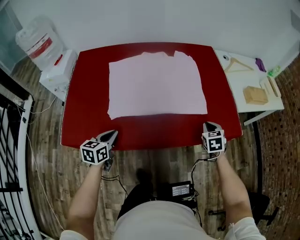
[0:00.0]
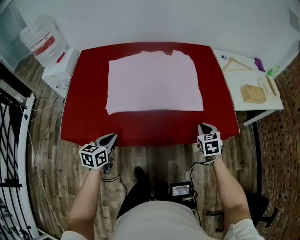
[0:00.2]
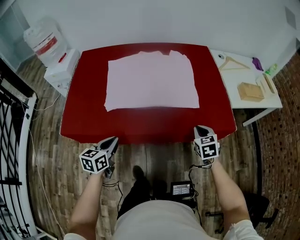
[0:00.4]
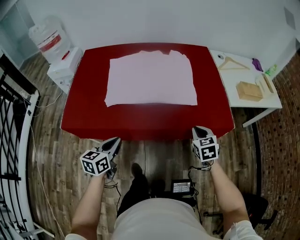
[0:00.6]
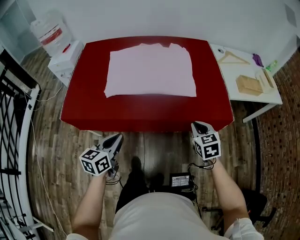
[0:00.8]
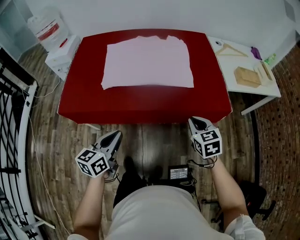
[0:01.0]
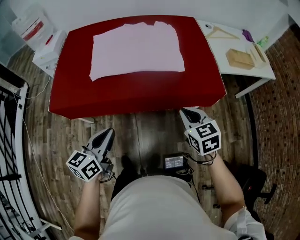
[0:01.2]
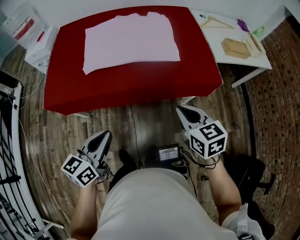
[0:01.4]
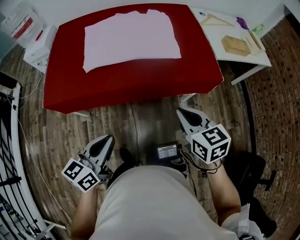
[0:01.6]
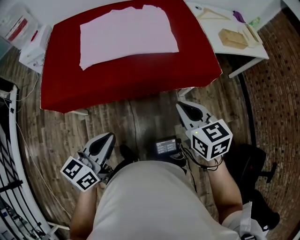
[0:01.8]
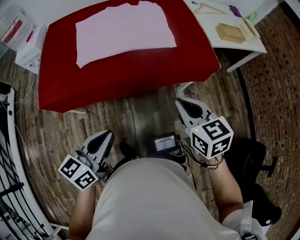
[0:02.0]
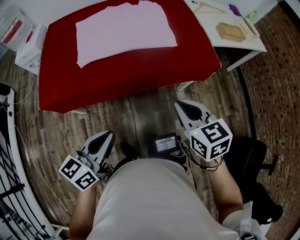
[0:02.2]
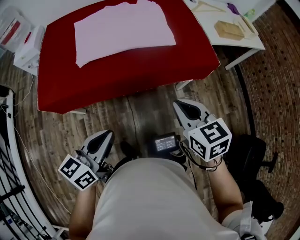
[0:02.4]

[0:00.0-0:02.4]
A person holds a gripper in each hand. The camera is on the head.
0.0 to 1.2 s: The left gripper shifts approximately 25 cm backward, to the right and upward, while the right gripper shifts about 20 cm backward and upward, and rotates some 20 degrees.
1.2 to 2.4 s: The right gripper moves backward and upward, about 10 cm. The left gripper moves backward, roughly 5 cm.

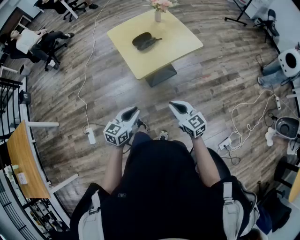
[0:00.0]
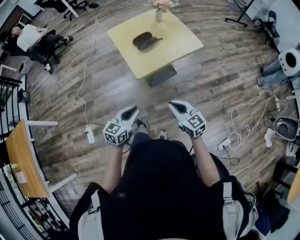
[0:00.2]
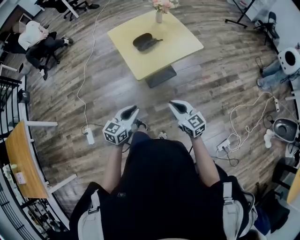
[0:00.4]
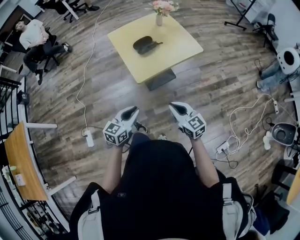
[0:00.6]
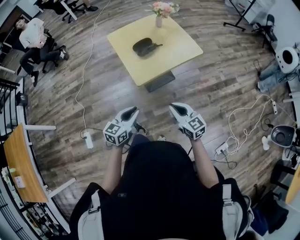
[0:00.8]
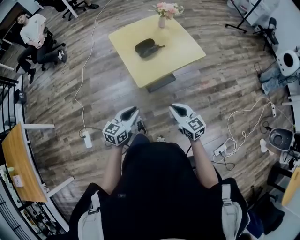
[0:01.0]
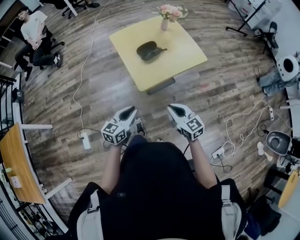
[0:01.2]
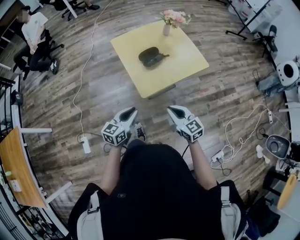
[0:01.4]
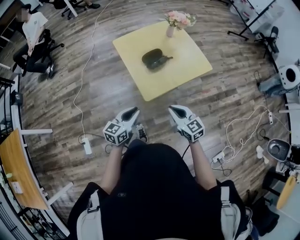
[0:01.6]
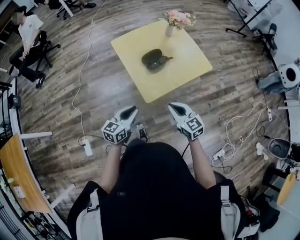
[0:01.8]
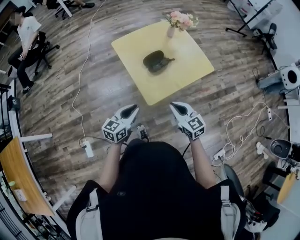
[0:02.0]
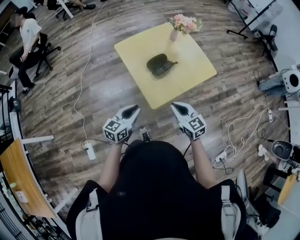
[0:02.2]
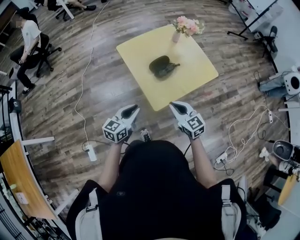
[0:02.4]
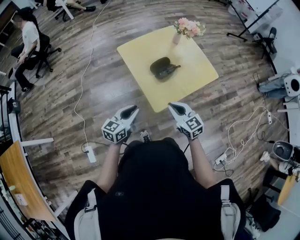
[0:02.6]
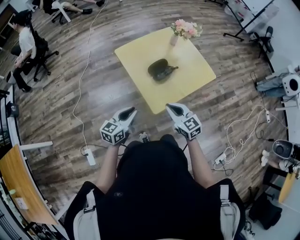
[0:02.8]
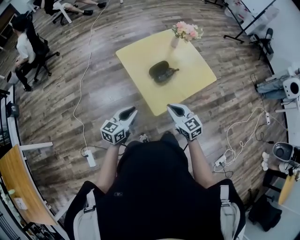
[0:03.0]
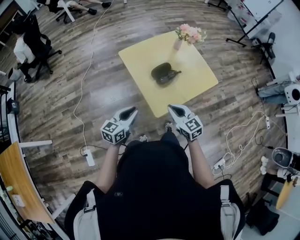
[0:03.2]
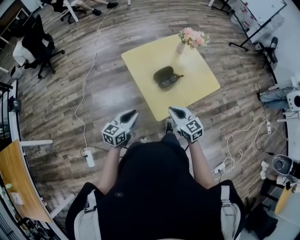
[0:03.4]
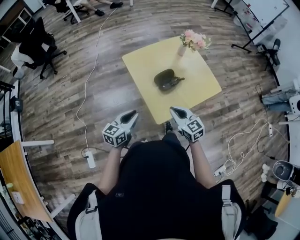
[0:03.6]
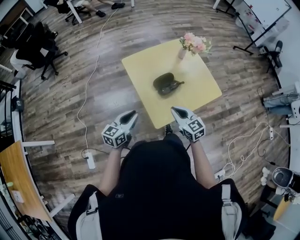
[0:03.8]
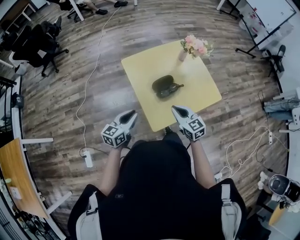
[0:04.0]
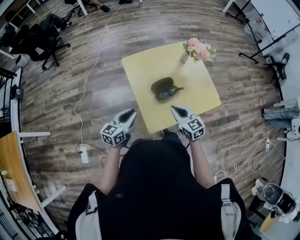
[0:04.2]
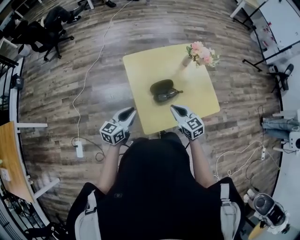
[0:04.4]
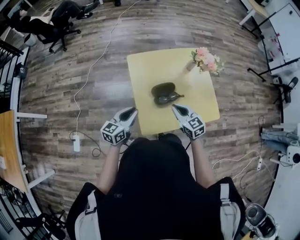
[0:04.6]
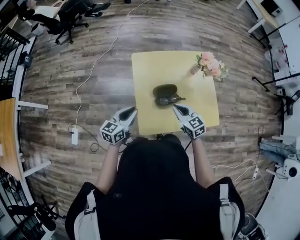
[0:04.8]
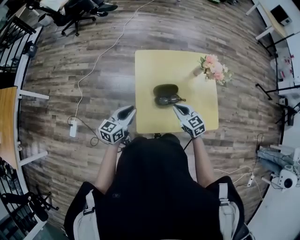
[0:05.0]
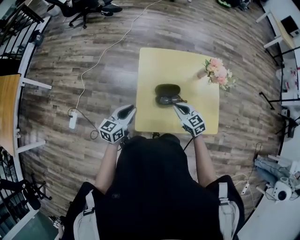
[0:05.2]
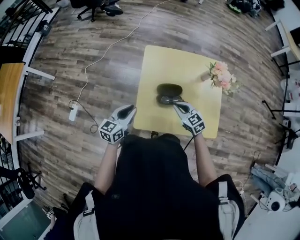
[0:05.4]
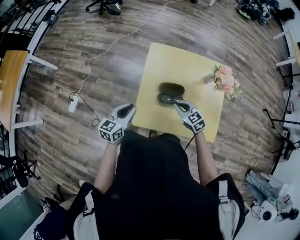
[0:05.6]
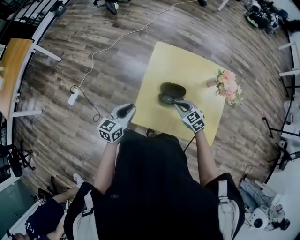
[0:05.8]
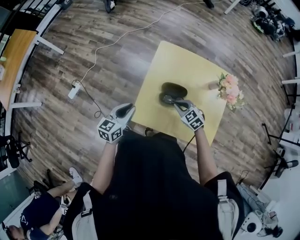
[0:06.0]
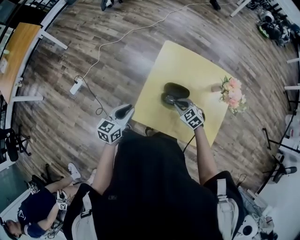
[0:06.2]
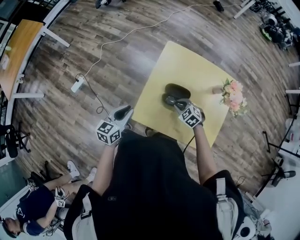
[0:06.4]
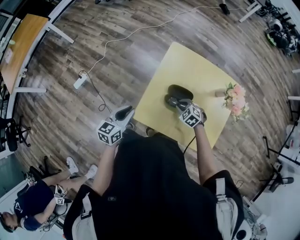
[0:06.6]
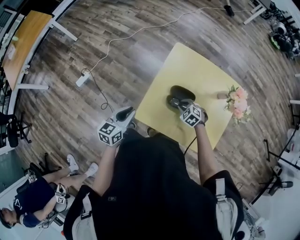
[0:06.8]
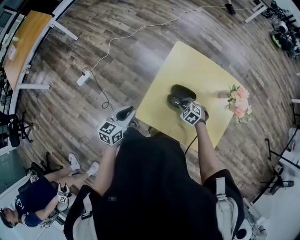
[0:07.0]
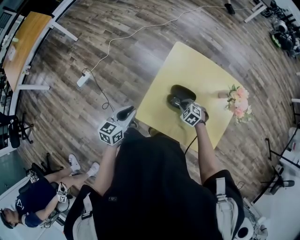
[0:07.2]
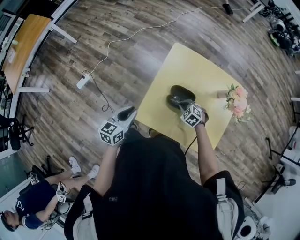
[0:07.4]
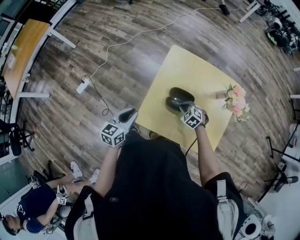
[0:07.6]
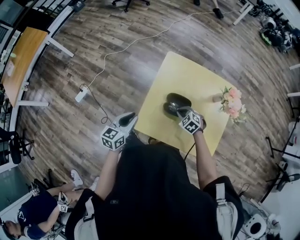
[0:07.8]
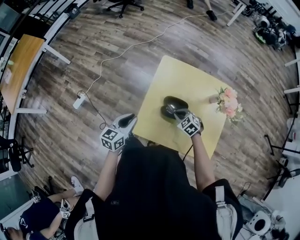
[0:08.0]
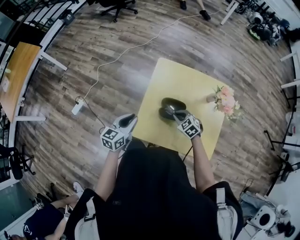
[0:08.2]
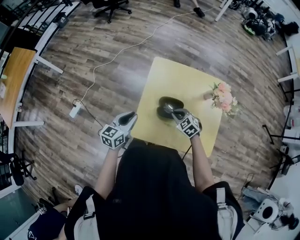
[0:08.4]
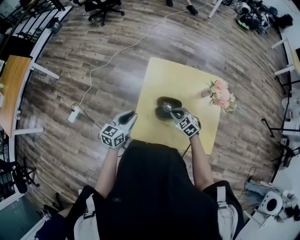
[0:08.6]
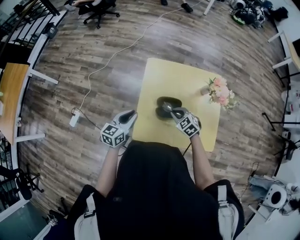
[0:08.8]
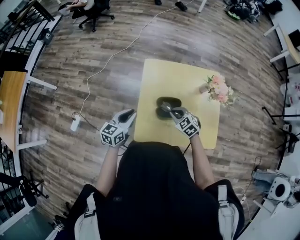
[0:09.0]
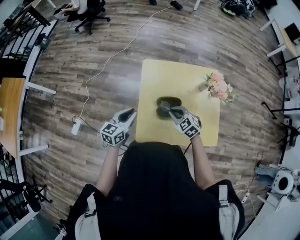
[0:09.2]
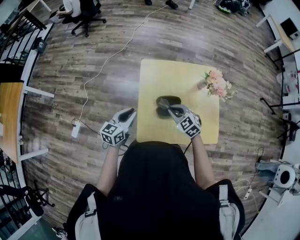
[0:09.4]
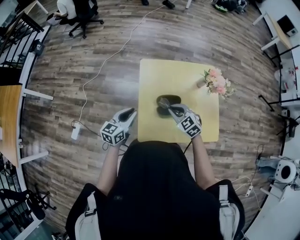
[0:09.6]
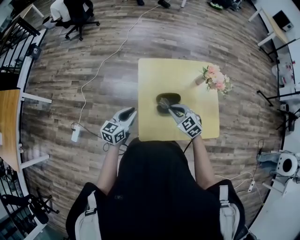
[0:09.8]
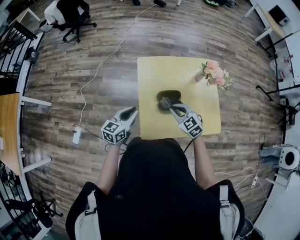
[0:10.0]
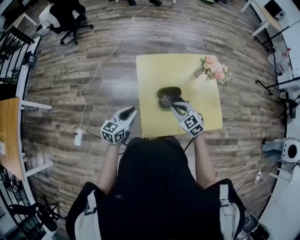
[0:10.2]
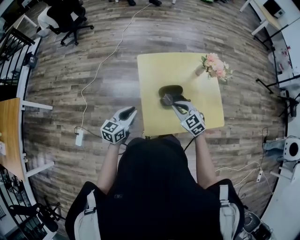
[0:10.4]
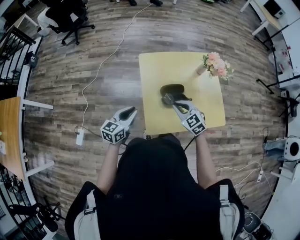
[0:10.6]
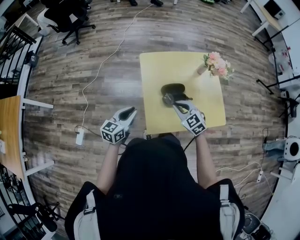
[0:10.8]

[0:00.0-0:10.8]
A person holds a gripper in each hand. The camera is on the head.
0.0 to 1.6 s: Both grippers travel together forward and to the left, about 20 cm.
1.6 to 3.0 s: Both grippers travel together forward and to the left, about 15 cm.
3.0 to 4.6 s: Both grippers travel together forward and to the right, about 20 cm. The left gripper swivels some 20 degrees.
4.6 to 6.2 s: The left gripper ends up roughly 5 cm from where it was, and swivels approximately 30 degrees. Meanwhile the right gripper moves downward, some 10 cm, and turns by approximately 50 degrees.
7.8 to 9.2 s: The left gripper heads forward, covering roughly 10 cm, while the right gripper heads upward, covering about 10 cm, and rotates some 20 degrees.
9.2 to 10.8 s: The right gripper heads backward, covering about 5 cm. The left gripper heads backward and to the left, covering some 10 cm.

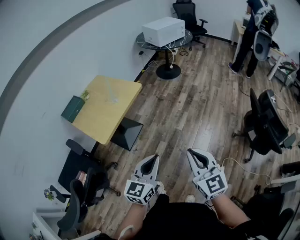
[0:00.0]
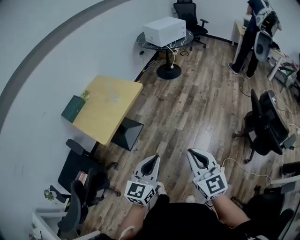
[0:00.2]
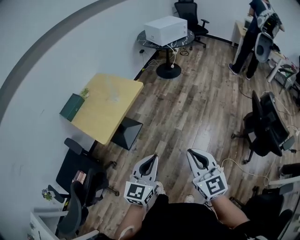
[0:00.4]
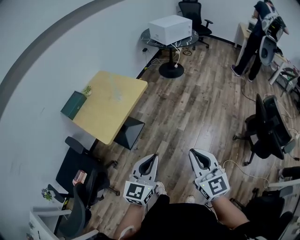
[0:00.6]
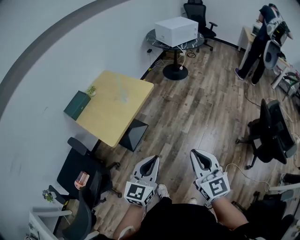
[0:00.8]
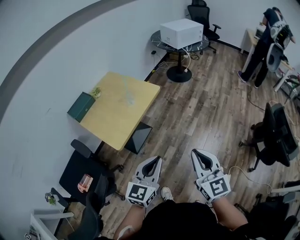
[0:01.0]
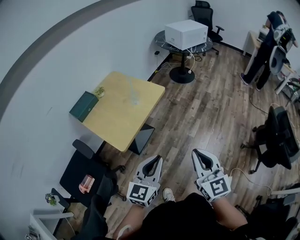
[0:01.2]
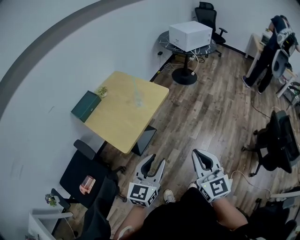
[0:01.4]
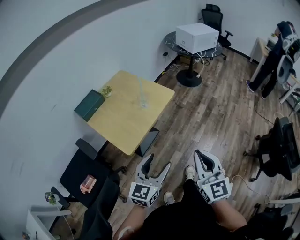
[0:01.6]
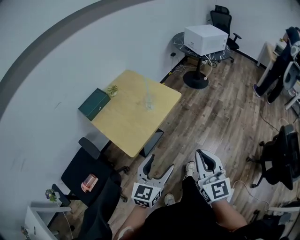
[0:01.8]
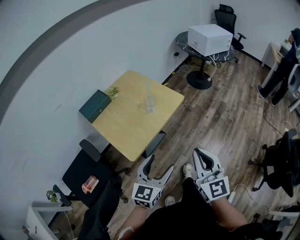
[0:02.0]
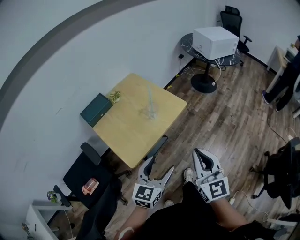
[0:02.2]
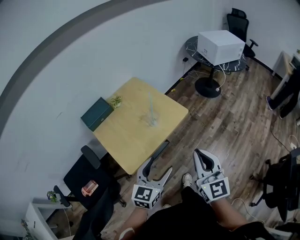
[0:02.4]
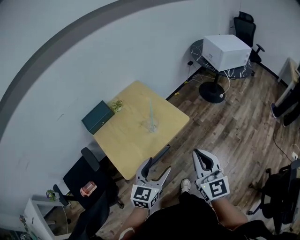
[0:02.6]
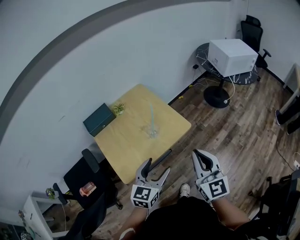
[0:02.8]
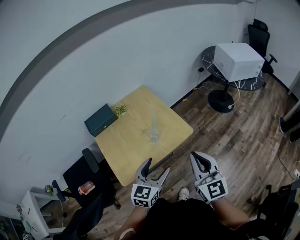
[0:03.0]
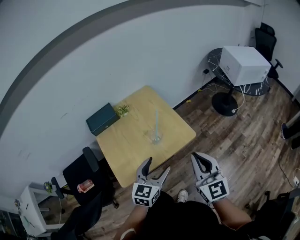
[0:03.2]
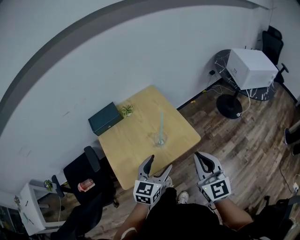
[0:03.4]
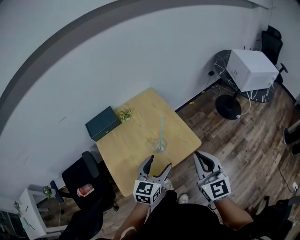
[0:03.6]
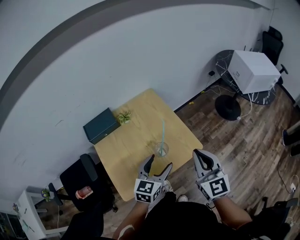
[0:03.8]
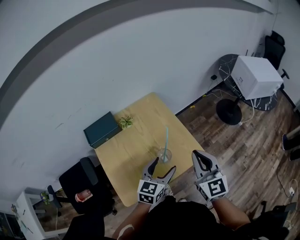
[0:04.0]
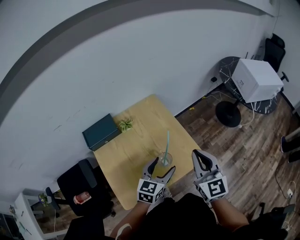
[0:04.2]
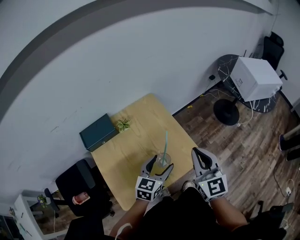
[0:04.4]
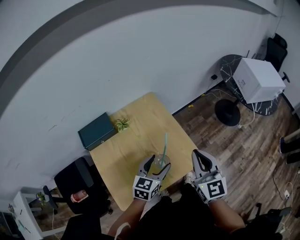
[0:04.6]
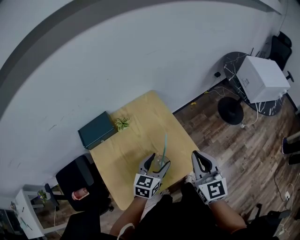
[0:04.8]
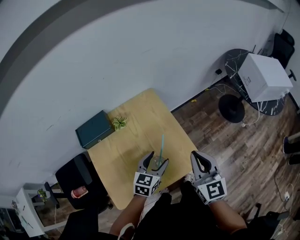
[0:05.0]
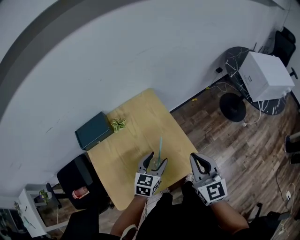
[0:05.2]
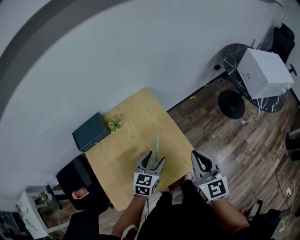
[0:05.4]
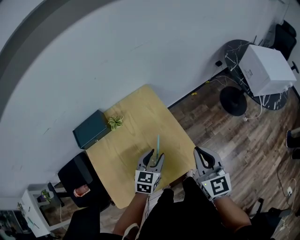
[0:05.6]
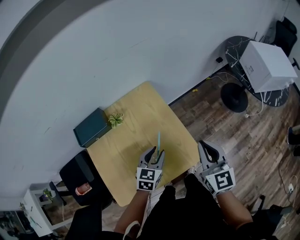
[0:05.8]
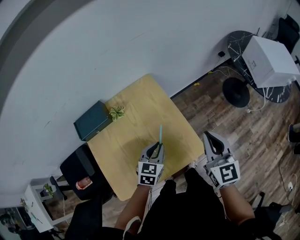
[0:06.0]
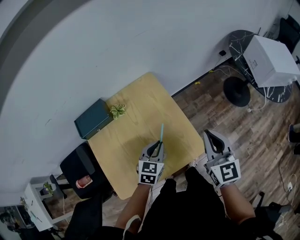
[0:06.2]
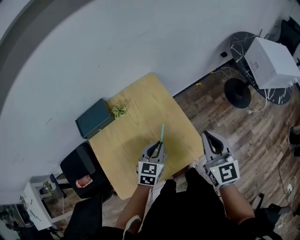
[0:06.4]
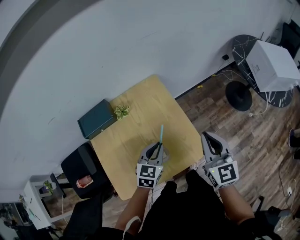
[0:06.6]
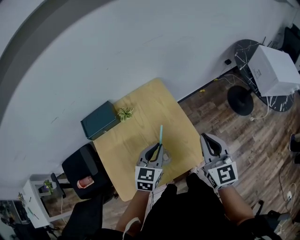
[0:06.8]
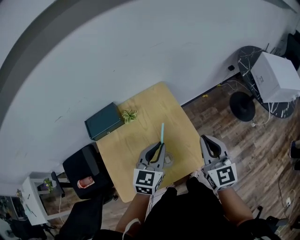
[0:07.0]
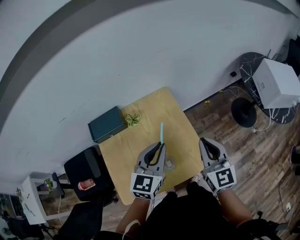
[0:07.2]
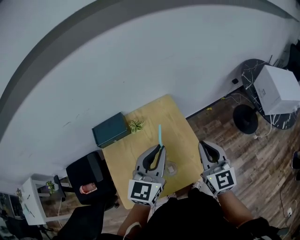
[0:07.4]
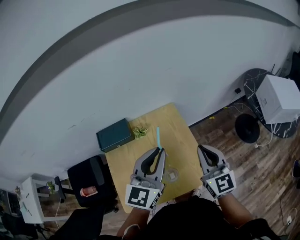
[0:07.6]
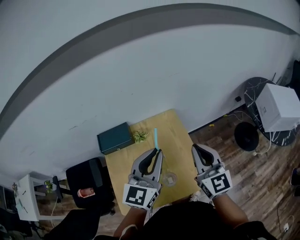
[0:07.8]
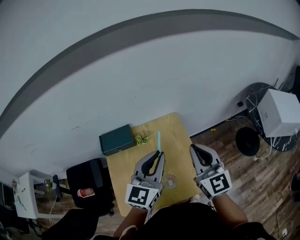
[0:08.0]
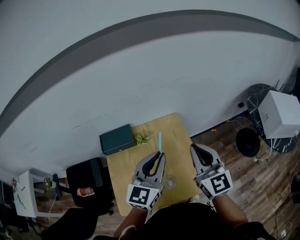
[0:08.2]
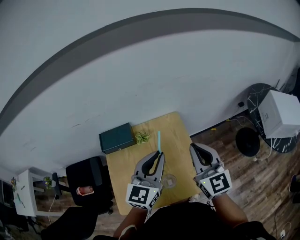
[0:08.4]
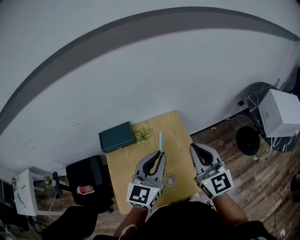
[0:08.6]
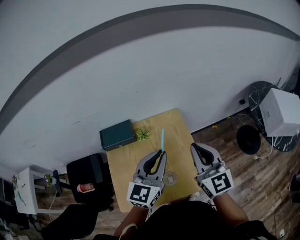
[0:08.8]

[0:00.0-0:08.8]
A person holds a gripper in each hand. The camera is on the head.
0.0 to 1.4 s: The grippers both shift to the left and forward by some 20 cm. The left gripper opens its fingers.
1.4 to 3.0 s: The two grippers go roughly 30 cm forward. The right gripper rotates roughly 20 degrees; the left gripper turns by about 20 degrees, and opens up.
3.0 to 4.4 s: The grippers both shift forward by some 20 cm.
4.4 to 5.8 s: The right gripper heads forward, to the right and downward, covering about 10 cm, while the left gripper moves forward and downward, about 10 cm, and closes its fingers.
5.8 to 7.4 s: The left gripper heads upward, covering approximately 25 cm, and rotates approximately 30 degrees. Meanwhile the right gripper moves to the left and upward, about 10 cm.
7.4 to 8.8 s: The right gripper heads upward, covering about 5 cm.

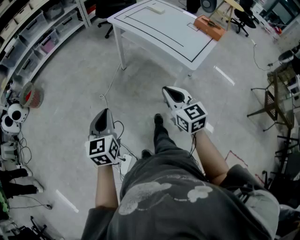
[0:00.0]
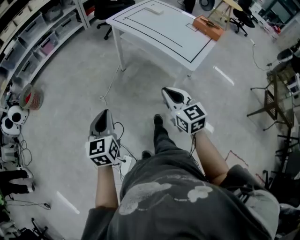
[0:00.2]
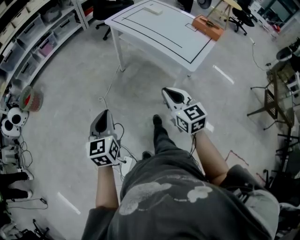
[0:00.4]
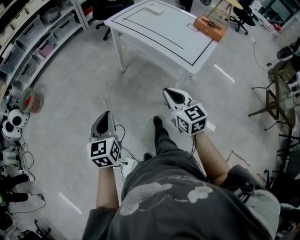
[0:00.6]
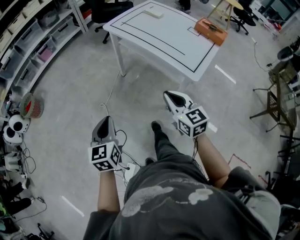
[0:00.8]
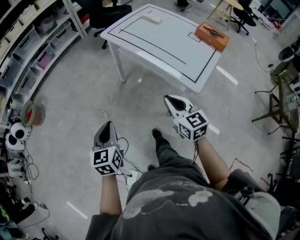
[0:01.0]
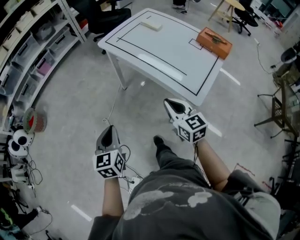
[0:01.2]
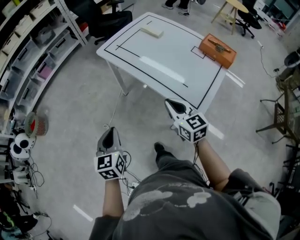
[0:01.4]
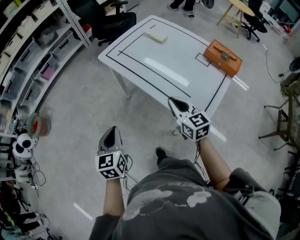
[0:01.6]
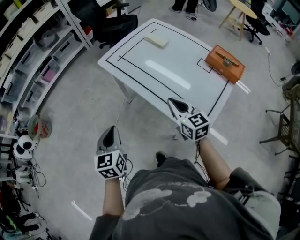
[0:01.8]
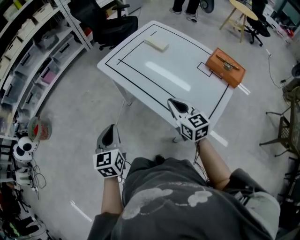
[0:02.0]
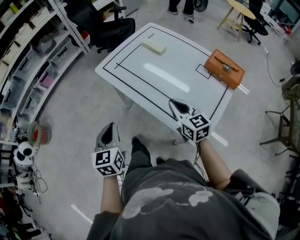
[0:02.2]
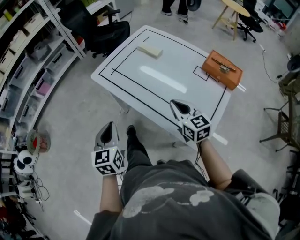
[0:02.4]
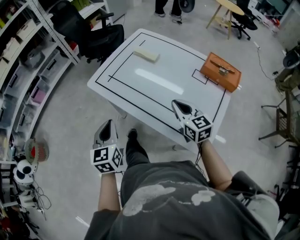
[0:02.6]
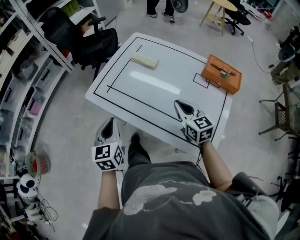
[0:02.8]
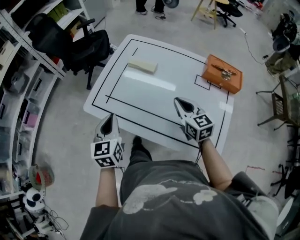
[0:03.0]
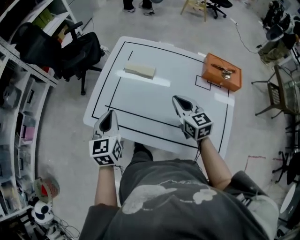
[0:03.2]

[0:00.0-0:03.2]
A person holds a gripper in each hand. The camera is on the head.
0.0 to 1.6 s: The two grippers go roughly 35 cm forward and to the right.
1.6 to 3.2 s: The left gripper changes place by roughly 40 cm, and changes its angle by approximately 30 degrees. Meanwhile the right gripper shifts by roughly 30 cm, and changes its angle by about 30 degrees.
